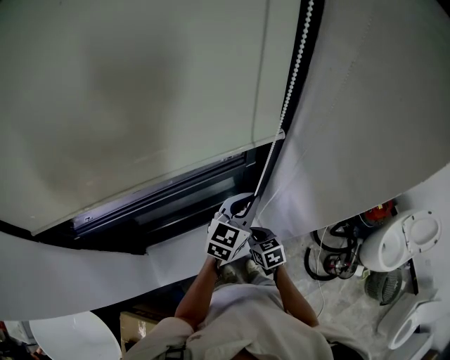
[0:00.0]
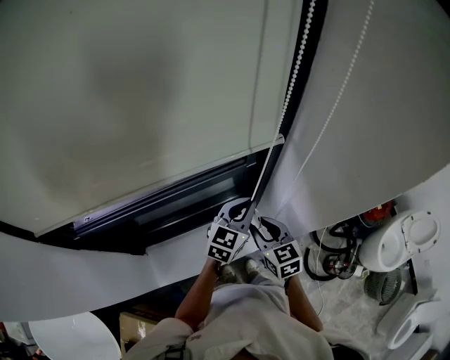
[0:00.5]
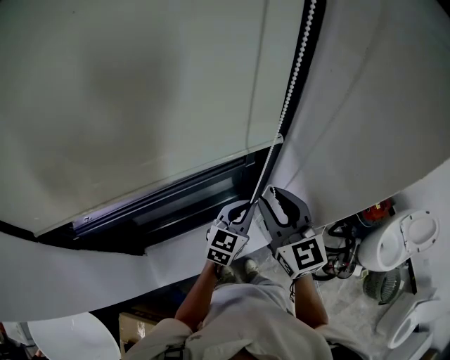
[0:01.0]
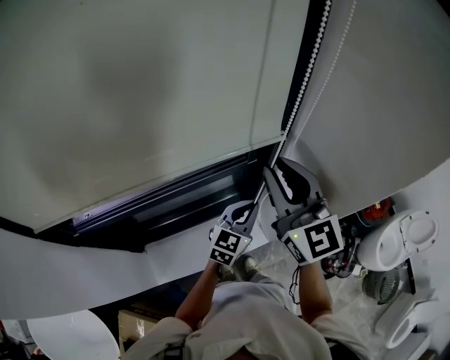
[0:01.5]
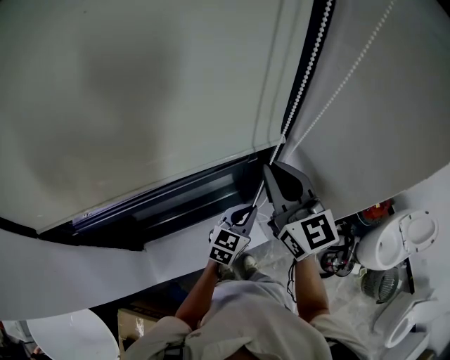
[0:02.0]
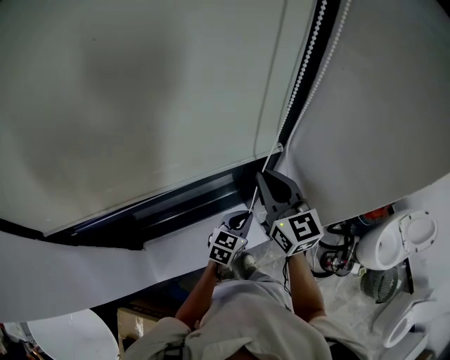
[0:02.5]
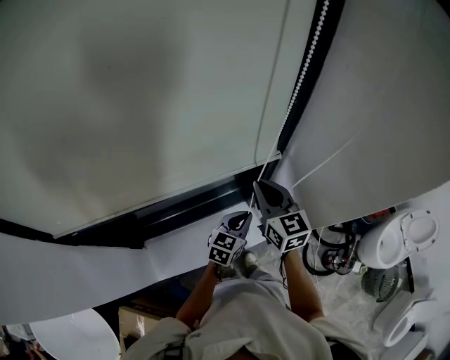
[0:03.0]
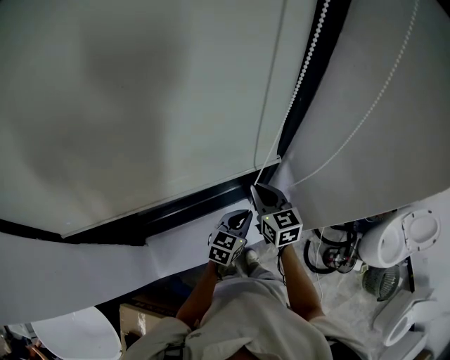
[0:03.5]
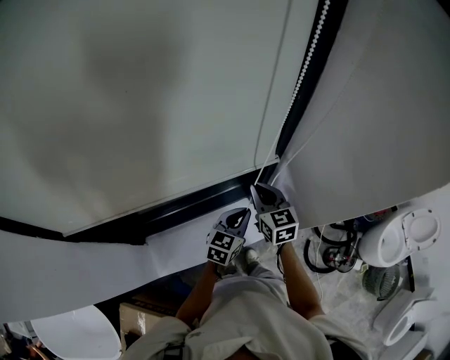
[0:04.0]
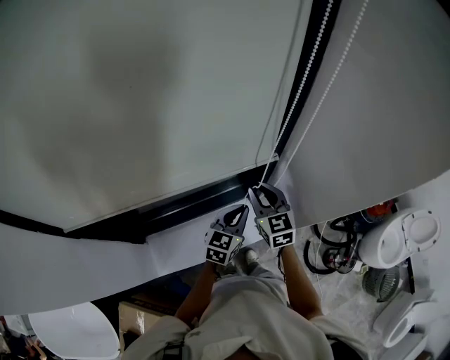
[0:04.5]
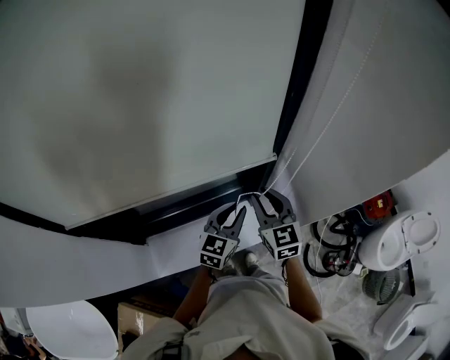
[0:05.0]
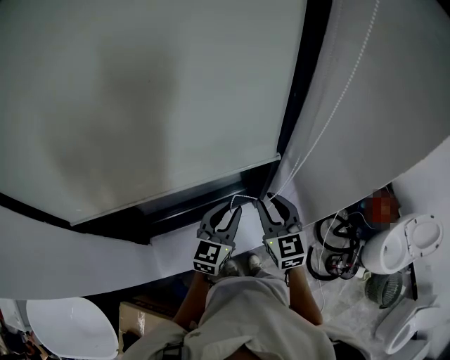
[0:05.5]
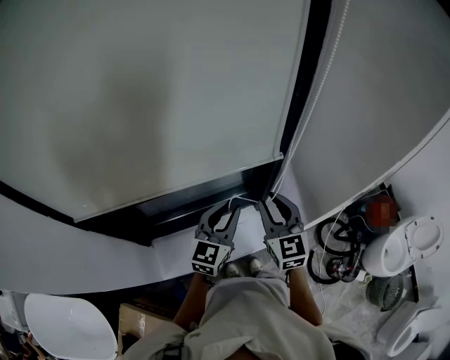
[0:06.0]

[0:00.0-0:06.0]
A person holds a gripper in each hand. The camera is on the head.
0:00.0 to 0:02.0: The right gripper goes some 35 cm upward, angles its fingers upward, by about 40 degrees, and opens, then closes again, while the left gripper is displaced downward by about 5 cm.
0:02.0 to 0:04.0: The right gripper heads downward, covering about 25 cm, and rotates some 30 degrees; the left gripper moves downward, some 5 cm.
0:04.0 to 0:06.0: The left gripper heads upward and to the left, covering about 15 cm, and turns by some 20 degrees; the right gripper goes about 15 cm upward and backward, and opens up.

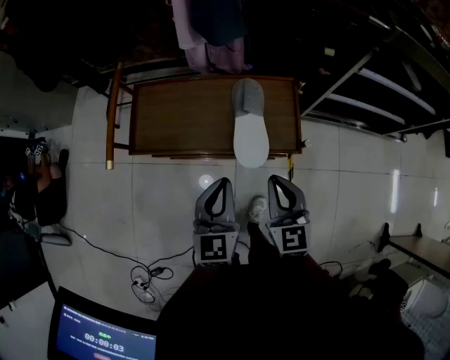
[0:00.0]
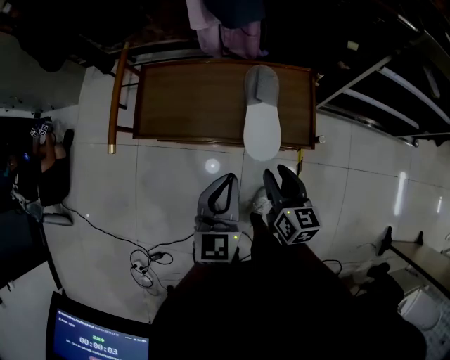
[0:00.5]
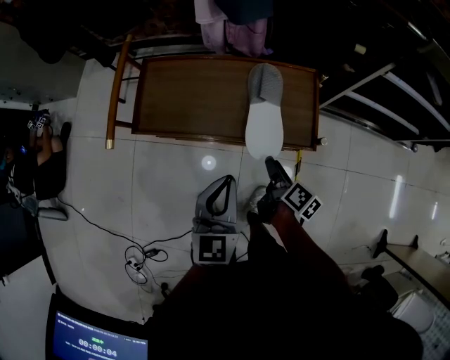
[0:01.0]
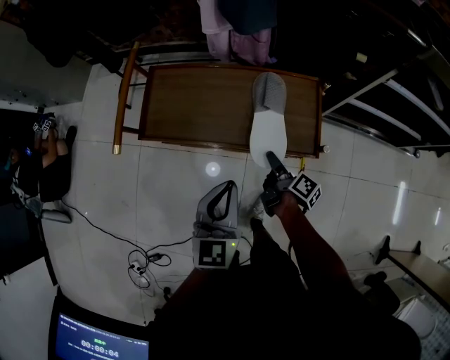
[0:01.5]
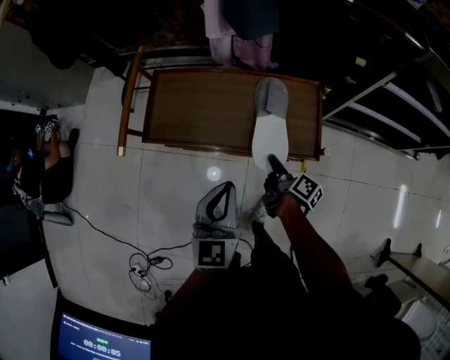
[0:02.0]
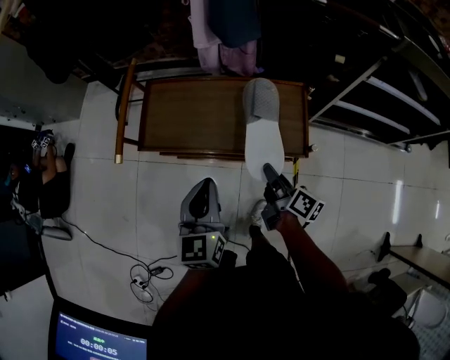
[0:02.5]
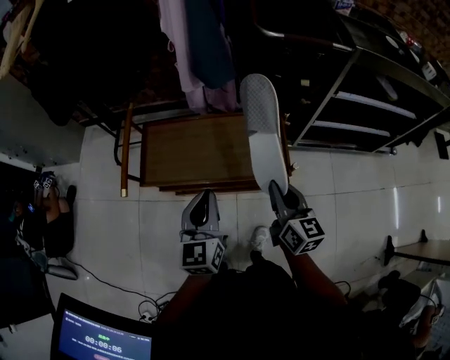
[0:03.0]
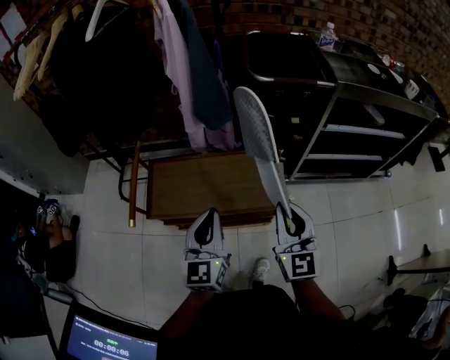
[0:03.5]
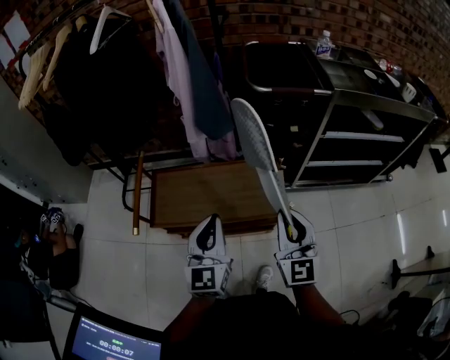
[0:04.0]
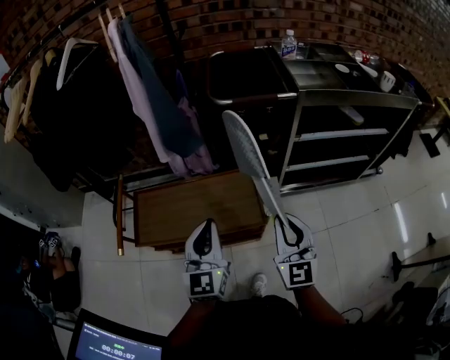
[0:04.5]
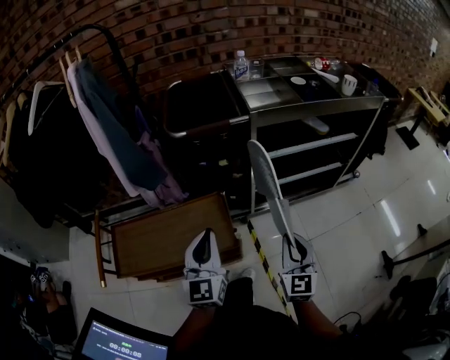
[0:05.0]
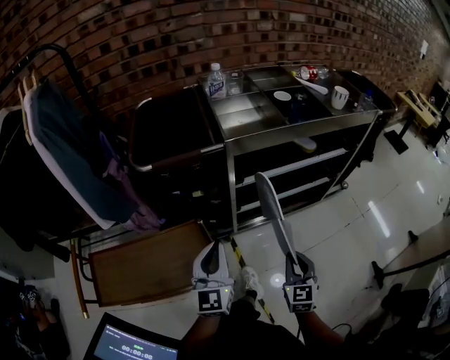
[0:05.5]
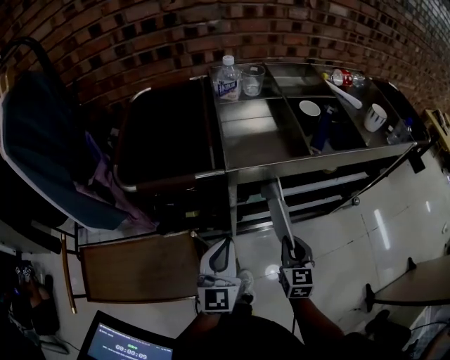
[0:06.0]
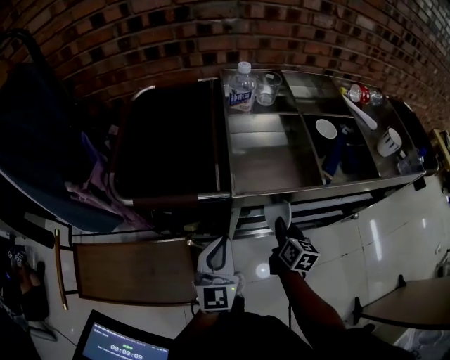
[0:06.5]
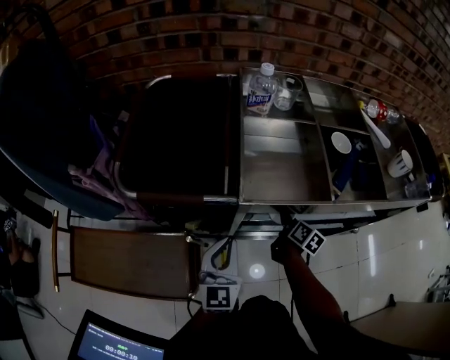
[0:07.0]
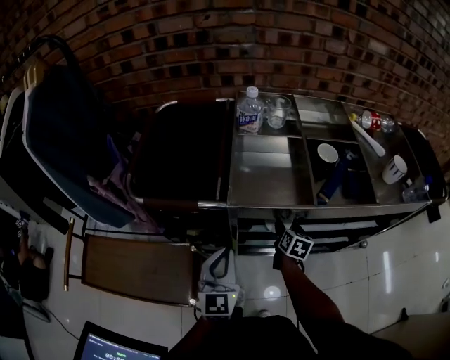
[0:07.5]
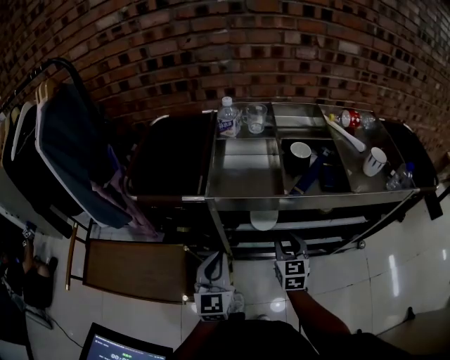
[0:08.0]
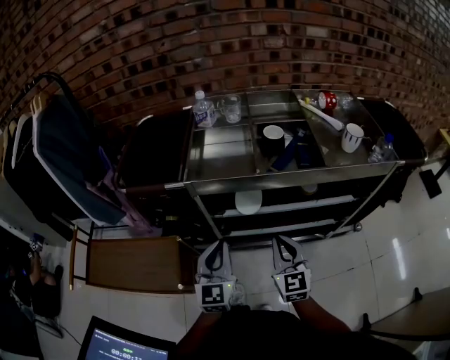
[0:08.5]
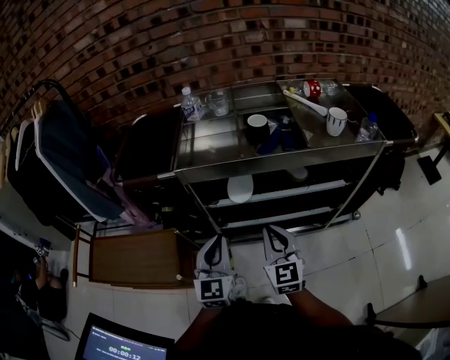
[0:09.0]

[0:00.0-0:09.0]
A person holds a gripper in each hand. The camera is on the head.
0:00.0 to 0:02.0: The right gripper goes roughly 20 cm downward and forward, rolls clockwise, seen from behind, by approximately 80 degrees, and opens and closes again.
0:02.0 to 0:04.5: The left gripper is displaced upward and to the right by roughly 20 cm. Meanwhile the right gripper moves upward, roughly 35 cm, and rotates around the line of its fingers by about 90 degrees, counterclockwise from behind.
0:04.5 to 0:07.0: The pair of grippers is taken forward and to the right, approximately 50 cm. The right gripper goes some 20 cm downward, and twists roughly 60 degrees clockwise, seen from behind.
0:07.0 to 0:09.0: The right gripper travels backward and upward by roughly 30 cm, rolls counterclockwise, seen from behind, by approximately 60 degrees, and opens and closes again. Meanwhile the left gripper goes some 20 cm backward, to the right and upward.

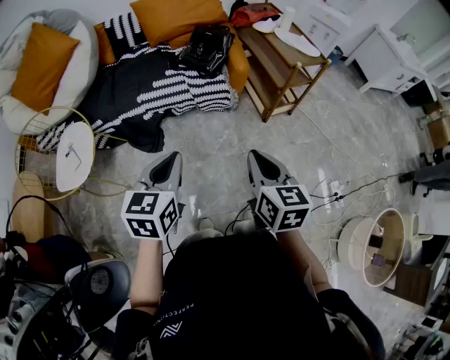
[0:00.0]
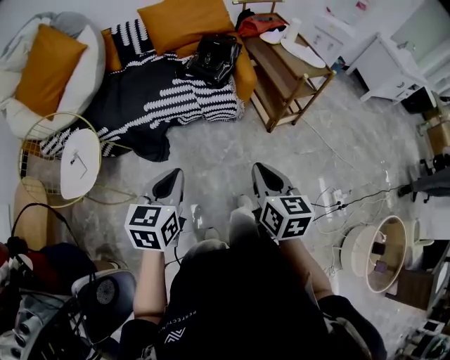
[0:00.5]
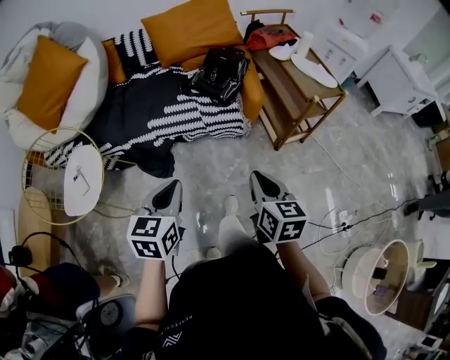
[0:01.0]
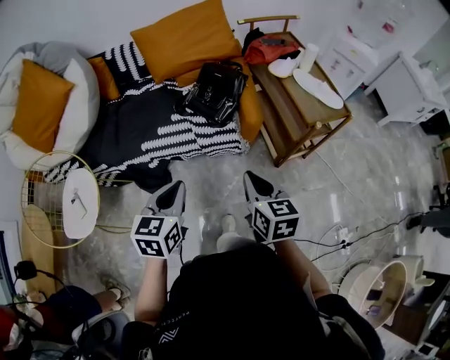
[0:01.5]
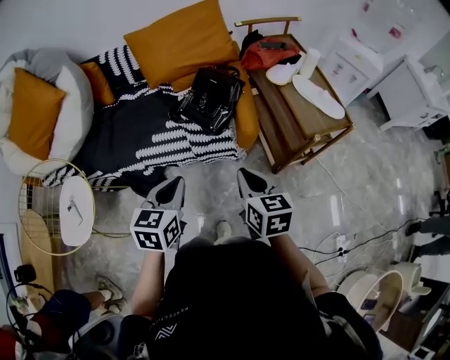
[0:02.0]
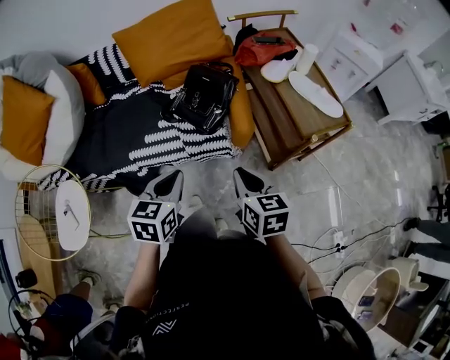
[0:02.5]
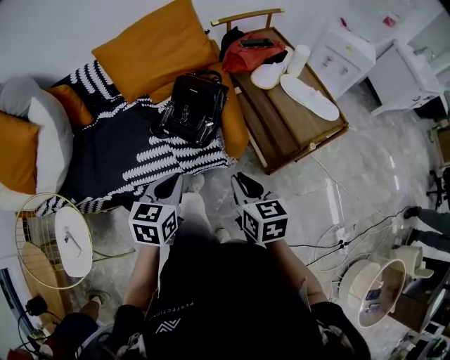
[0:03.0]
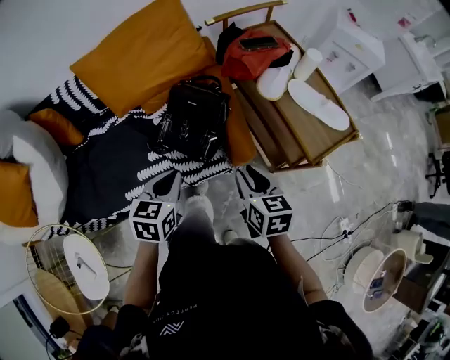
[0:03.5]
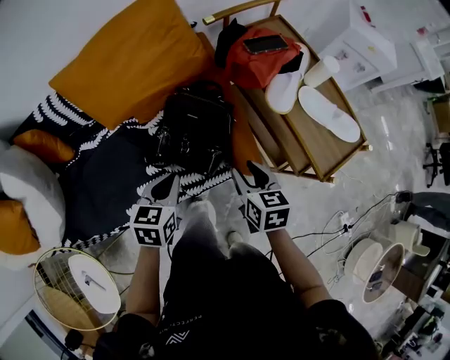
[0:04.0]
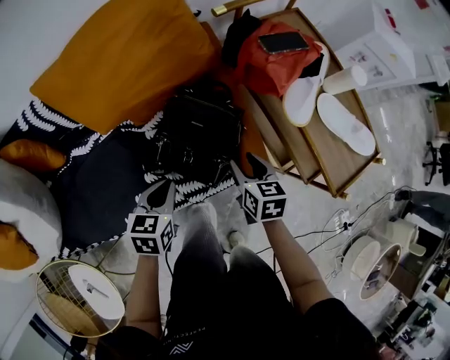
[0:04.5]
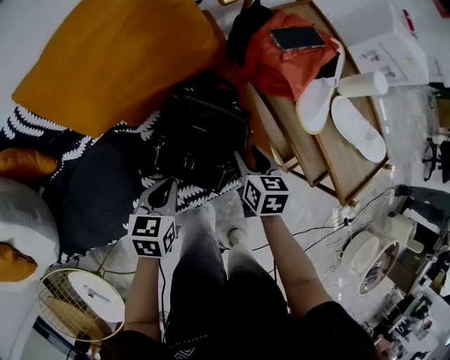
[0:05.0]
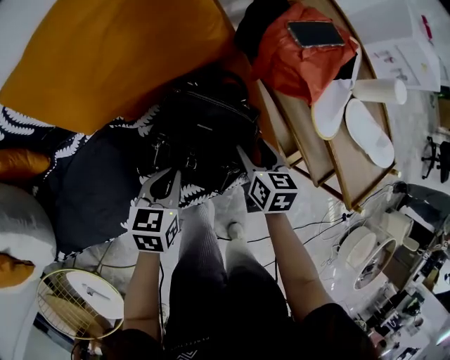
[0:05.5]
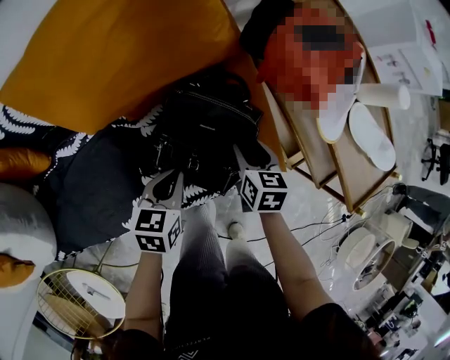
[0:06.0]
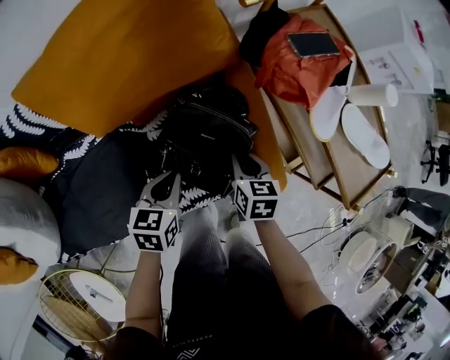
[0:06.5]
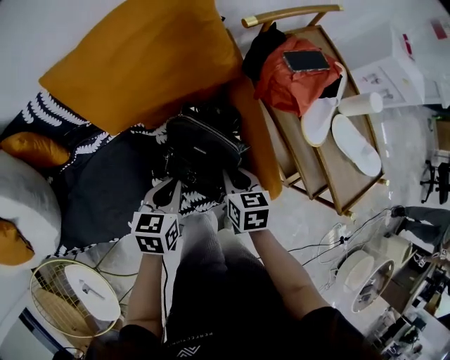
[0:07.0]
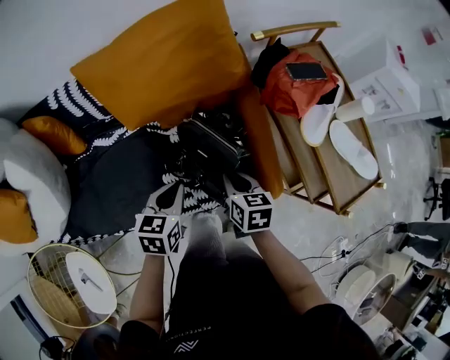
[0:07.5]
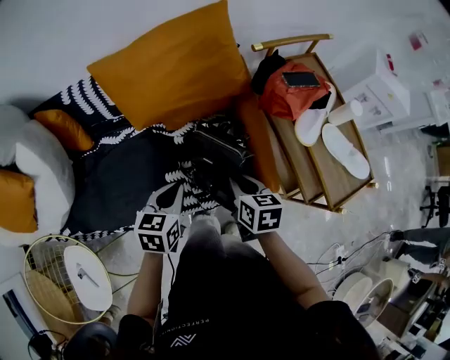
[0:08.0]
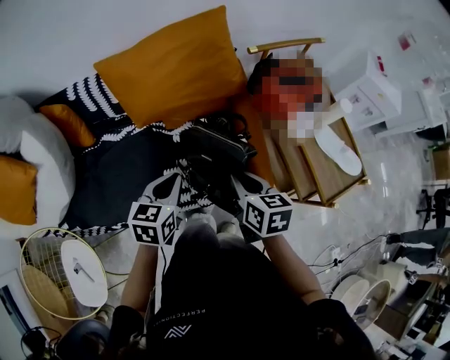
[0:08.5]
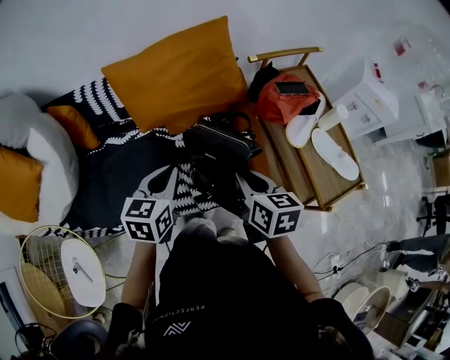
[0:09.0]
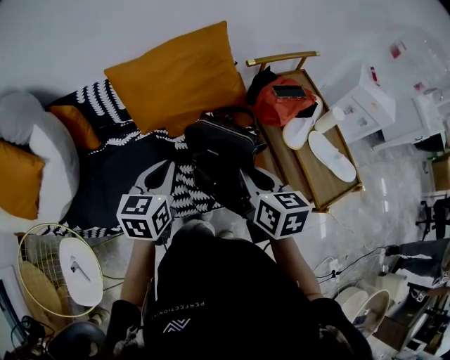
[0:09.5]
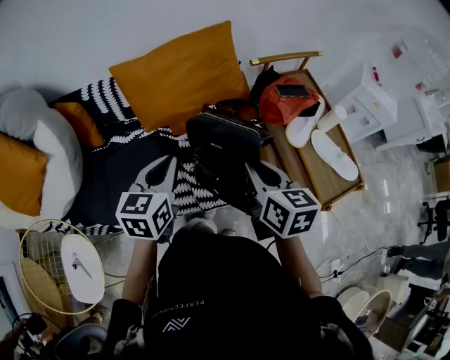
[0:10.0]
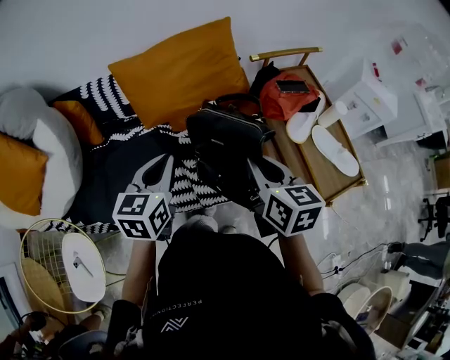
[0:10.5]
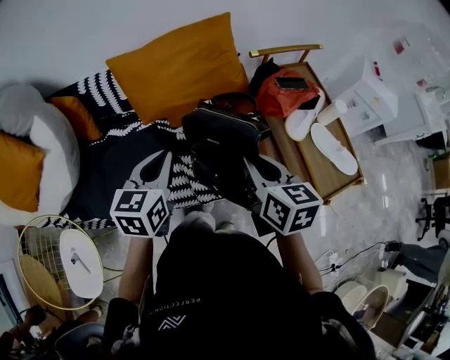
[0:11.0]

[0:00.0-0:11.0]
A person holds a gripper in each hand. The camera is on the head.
0:00.0 to 0:02.0: Both grippers travel together forward, approximately 30 cm.
0:02.0 to 0:03.5: Both grippers travel together forward, some 20 cm. The right gripper opens.
0:03.5 to 0:05.5: Both grippers move forward and downward, approximately 25 cm. The right gripper opens up.
0:05.5 to 0:07.5: The right gripper moves upward, to the left and backward, approximately 15 cm, and closes up. Meanwhile the left gripper moves upward and backward, some 10 cm.
0:07.5 to 0:09.0: Both grippers move upward, about 15 cm.
0:09.0 to 0:11.0: Both grippers travel together upward, about 5 cm.
